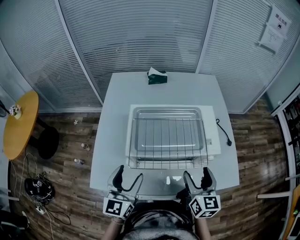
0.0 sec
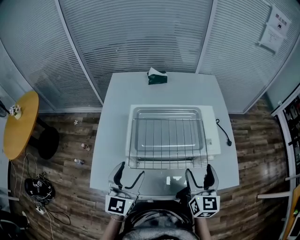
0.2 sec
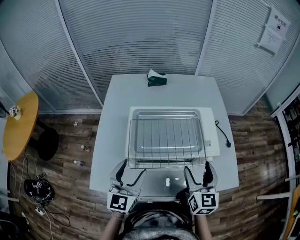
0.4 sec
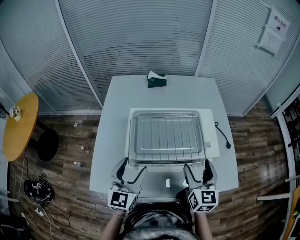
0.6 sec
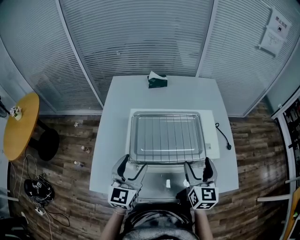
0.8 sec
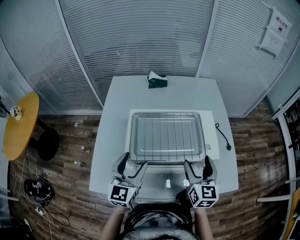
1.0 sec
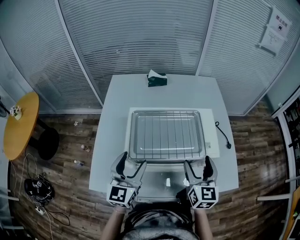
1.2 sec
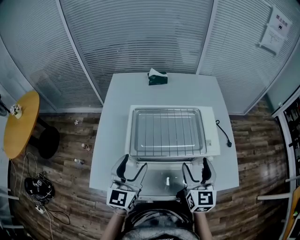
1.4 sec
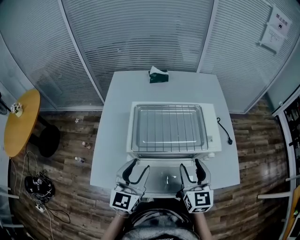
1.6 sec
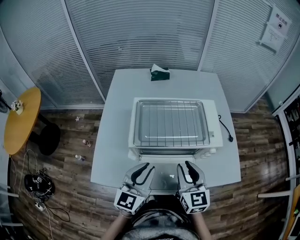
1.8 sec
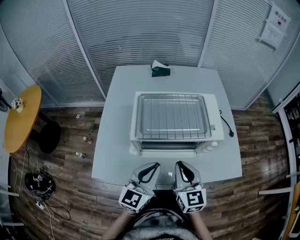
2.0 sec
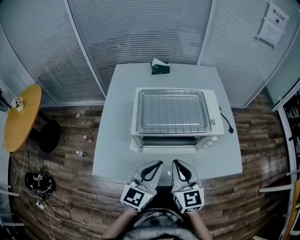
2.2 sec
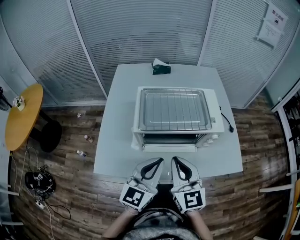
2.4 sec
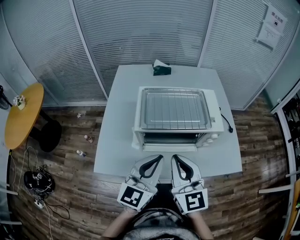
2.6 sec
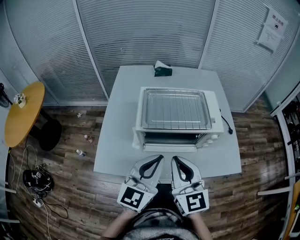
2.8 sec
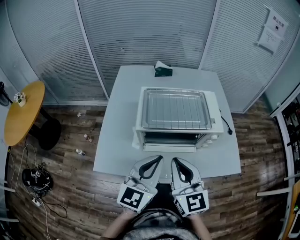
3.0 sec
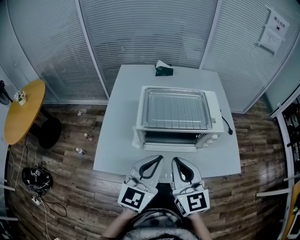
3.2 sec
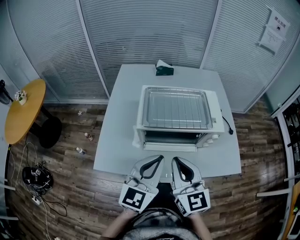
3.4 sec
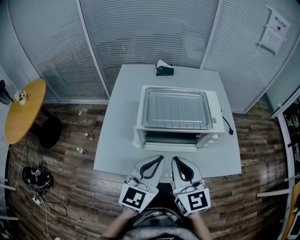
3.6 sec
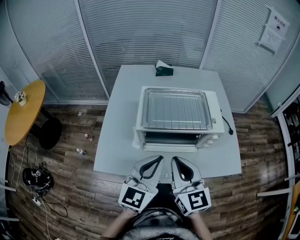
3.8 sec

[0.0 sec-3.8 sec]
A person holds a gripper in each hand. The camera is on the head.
0.0 sec to 1.2 sec: Both grippers travel together forward, about 5 cm.
1.2 sec to 2.6 sec: The right gripper shifts roughly 20 cm backward, to the left and upward, turns by about 20 degrees, and closes, while the left gripper shifts about 15 cm backward and to the right, and closes its fingers.
2.6 sec to 3.8 sec: The grippers make only small movements.

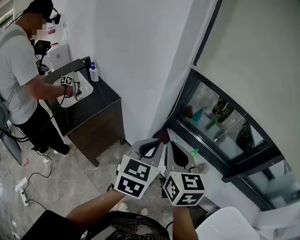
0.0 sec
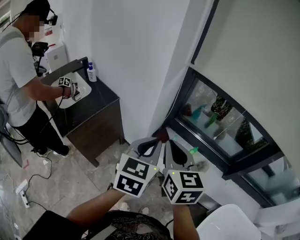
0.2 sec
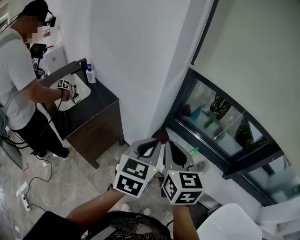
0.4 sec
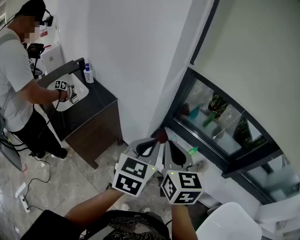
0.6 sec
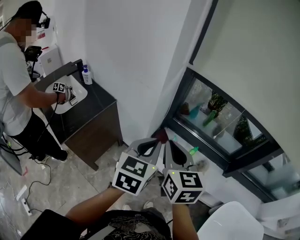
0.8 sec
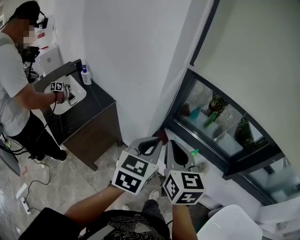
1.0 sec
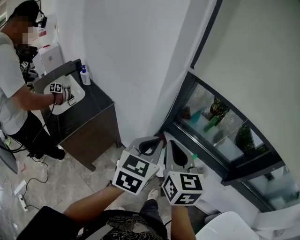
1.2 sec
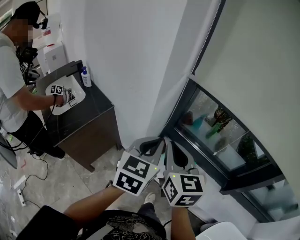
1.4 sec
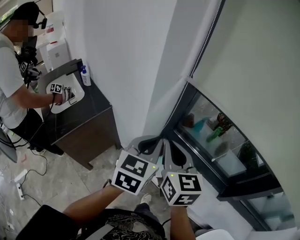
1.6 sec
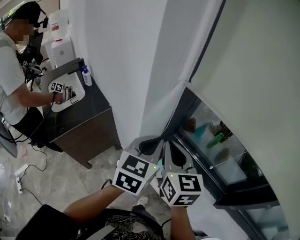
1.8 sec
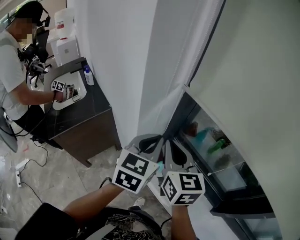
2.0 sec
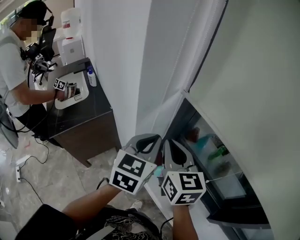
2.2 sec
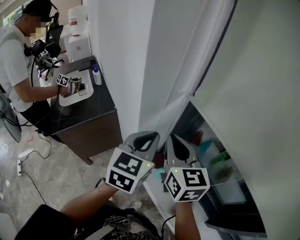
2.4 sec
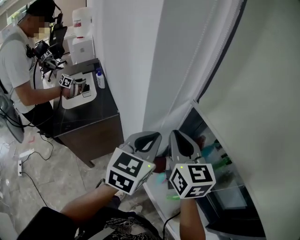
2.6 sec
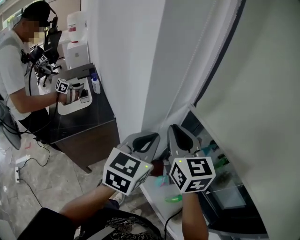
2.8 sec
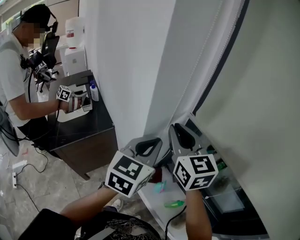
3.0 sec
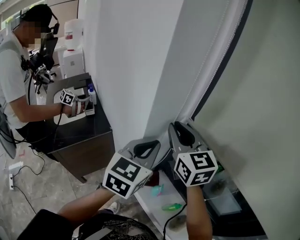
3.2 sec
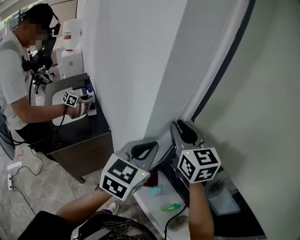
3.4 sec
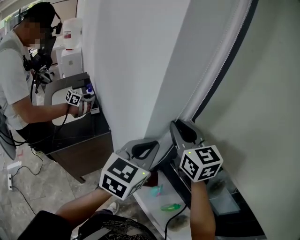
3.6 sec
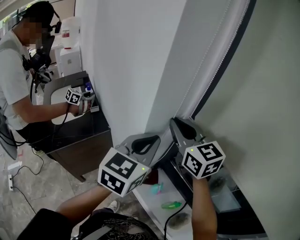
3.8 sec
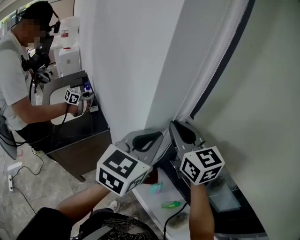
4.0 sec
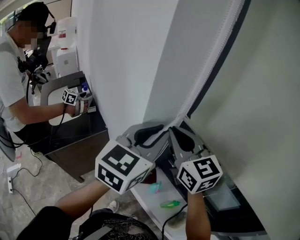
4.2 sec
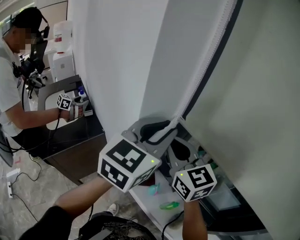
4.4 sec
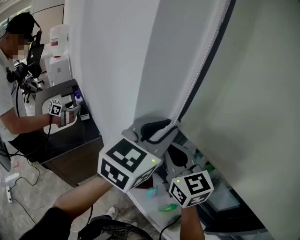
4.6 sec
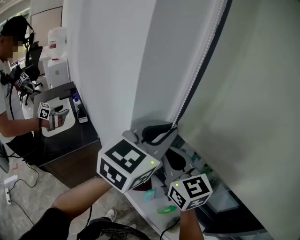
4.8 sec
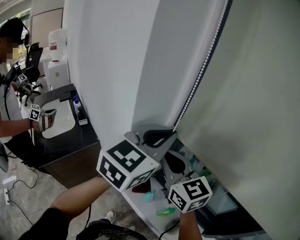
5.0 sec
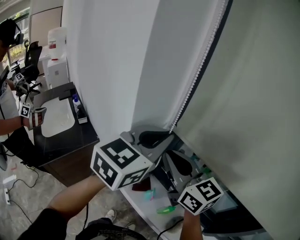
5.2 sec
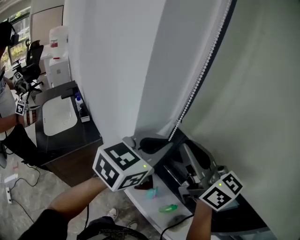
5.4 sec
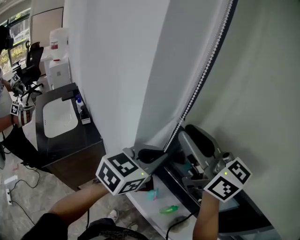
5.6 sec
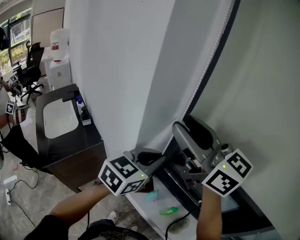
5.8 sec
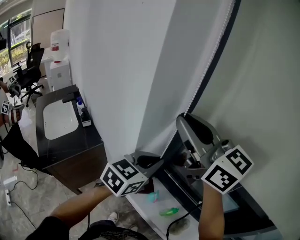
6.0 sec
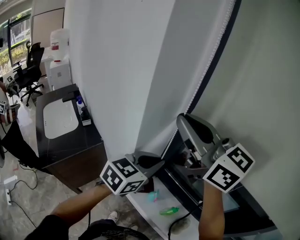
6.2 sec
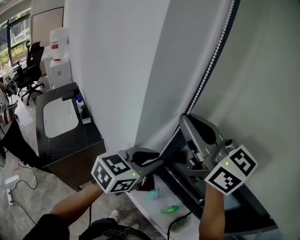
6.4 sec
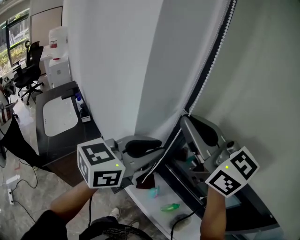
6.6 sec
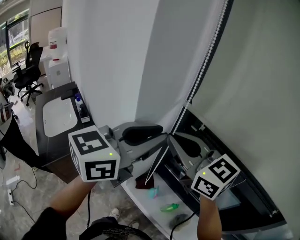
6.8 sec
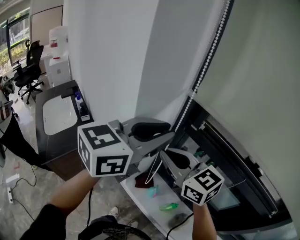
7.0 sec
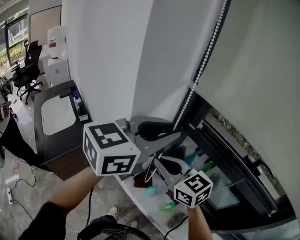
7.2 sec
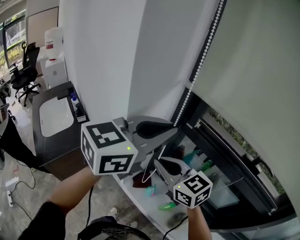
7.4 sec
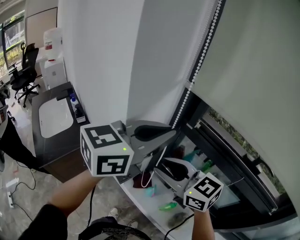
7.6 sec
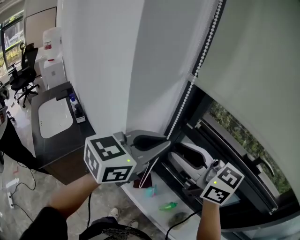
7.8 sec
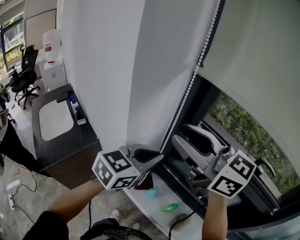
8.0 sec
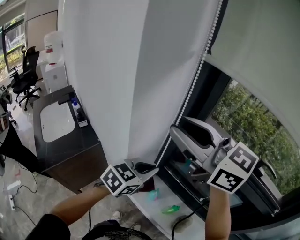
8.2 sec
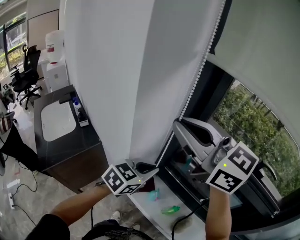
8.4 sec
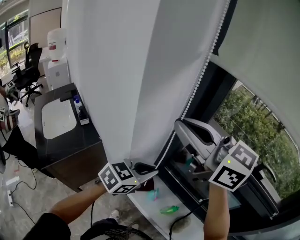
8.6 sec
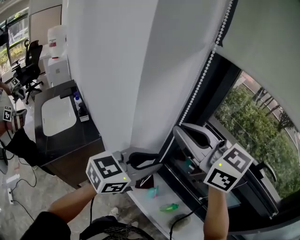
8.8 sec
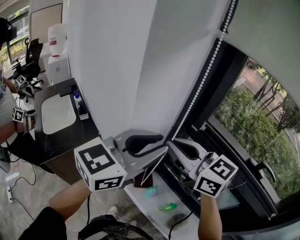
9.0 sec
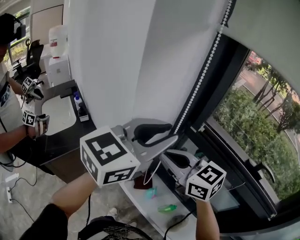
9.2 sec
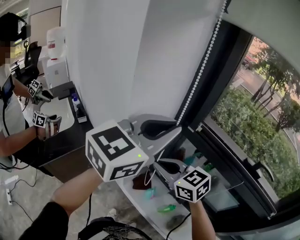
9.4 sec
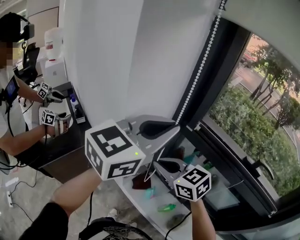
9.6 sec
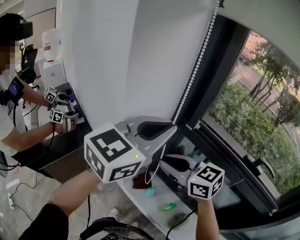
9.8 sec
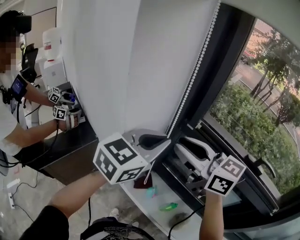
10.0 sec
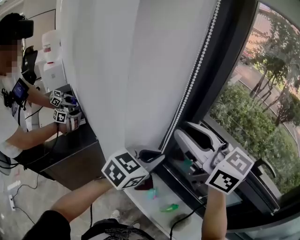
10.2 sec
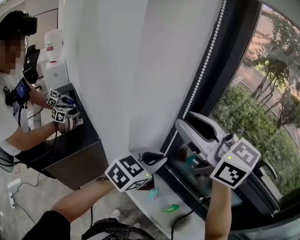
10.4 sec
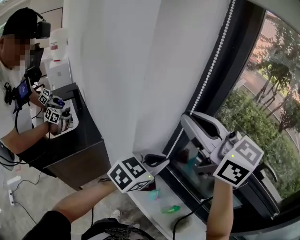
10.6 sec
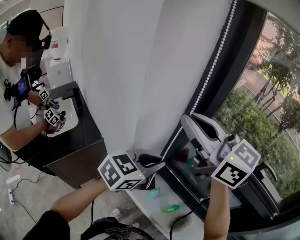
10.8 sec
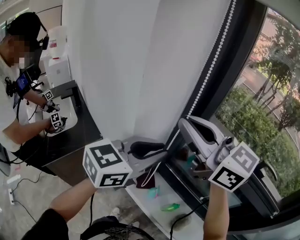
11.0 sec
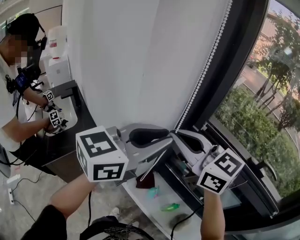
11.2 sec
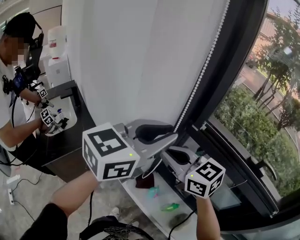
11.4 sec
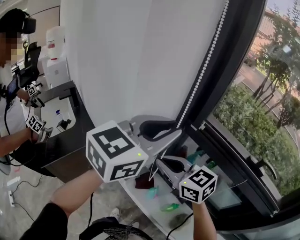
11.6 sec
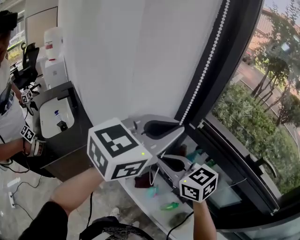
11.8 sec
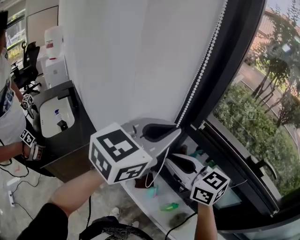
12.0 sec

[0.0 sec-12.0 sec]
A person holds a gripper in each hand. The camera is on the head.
0.0 sec to 1.6 sec: Both grippers move forward, roughly 15 cm.
1.6 sec to 3.0 sec: The left gripper travels forward and upward by about 10 cm, while the right gripper travels forward and upward by roughly 20 cm, and turns by some 20 degrees.
3.0 sec to 4.4 sec: The left gripper shifts about 10 cm upward, and opens.
4.4 sec to 6.0 sec: The right gripper is displaced upward by roughly 15 cm, and opens and closes again. Meanwhile the left gripper shifts roughly 10 cm downward.
6.0 sec to 7.6 sec: The left gripper moves upward, roughly 15 cm. The right gripper shifts about 20 cm downward, and swivels some 20 degrees.
7.6 sec to 9.0 sec: The left gripper goes downward and returns, roughly 20 cm each way, and opens up; the right gripper is displaced upward by some 5 cm, and closes.
9.0 sec to 10.4 sec: The left gripper heads downward, covering about 15 cm, changes its angle by some 20 degrees, and closes up; the right gripper moves upward, some 10 cm, and opens up.
10.4 sec to 12.0 sec: The right gripper travels downward by roughly 15 cm; the left gripper goes approximately 15 cm upward.

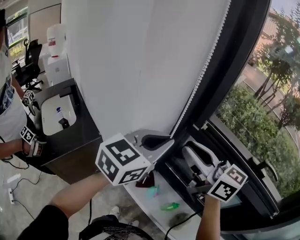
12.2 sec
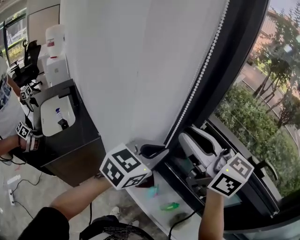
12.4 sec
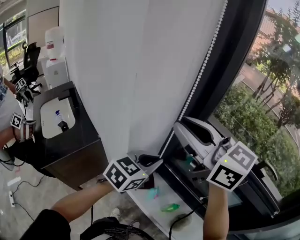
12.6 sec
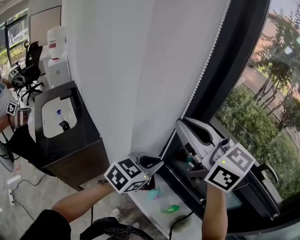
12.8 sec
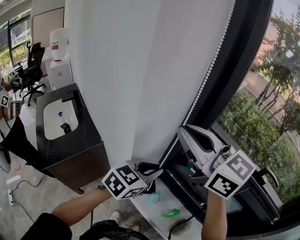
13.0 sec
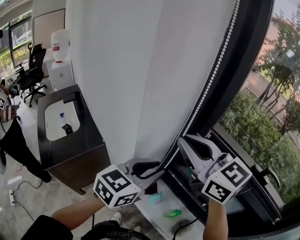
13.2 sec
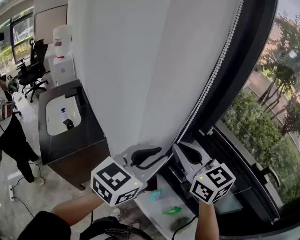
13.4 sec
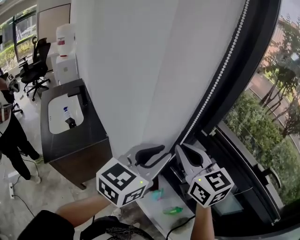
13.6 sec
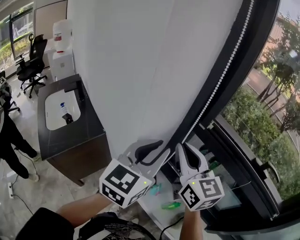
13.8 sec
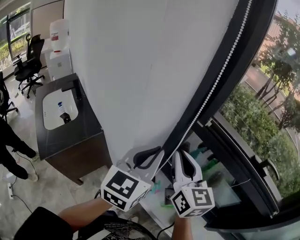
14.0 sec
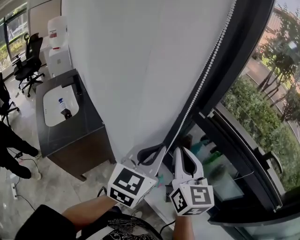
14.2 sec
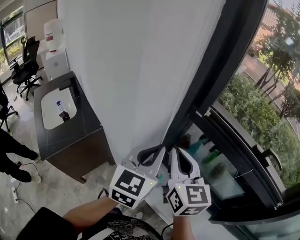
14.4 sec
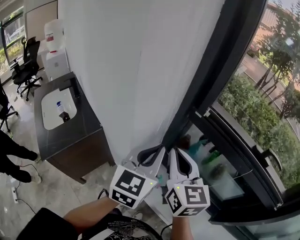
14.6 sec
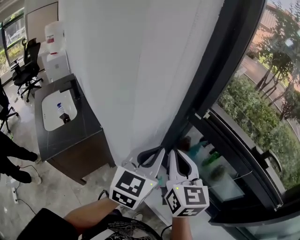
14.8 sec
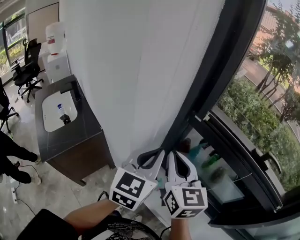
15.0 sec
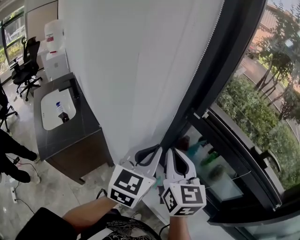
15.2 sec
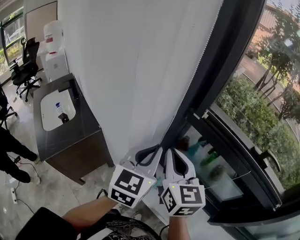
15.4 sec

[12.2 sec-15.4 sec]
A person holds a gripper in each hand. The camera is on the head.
12.2 sec to 13.8 sec: The left gripper goes downward and returns, roughly 10 cm each way. Meanwhile the right gripper goes upward and returns, approximately 10 cm each way, and rotates some 20 degrees.
13.8 sec to 15.4 sec: The left gripper shifts approximately 5 cm downward, while the right gripper moves approximately 5 cm.

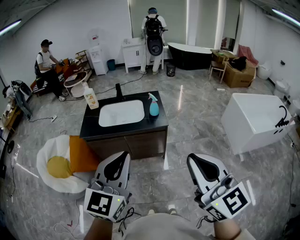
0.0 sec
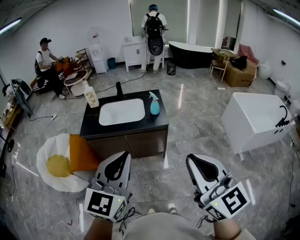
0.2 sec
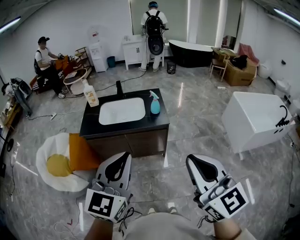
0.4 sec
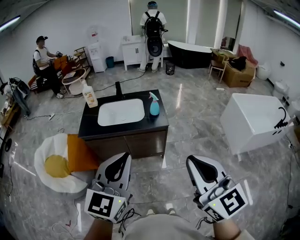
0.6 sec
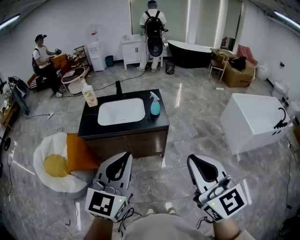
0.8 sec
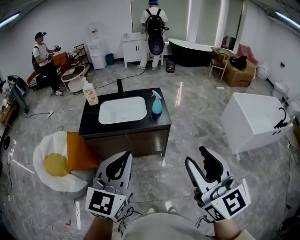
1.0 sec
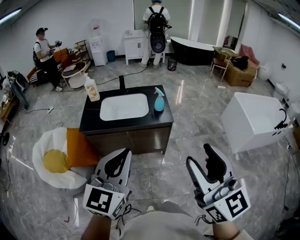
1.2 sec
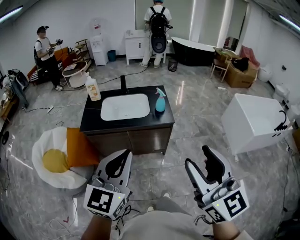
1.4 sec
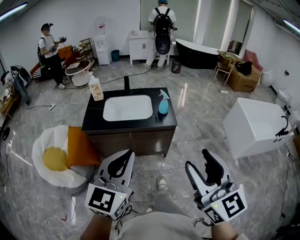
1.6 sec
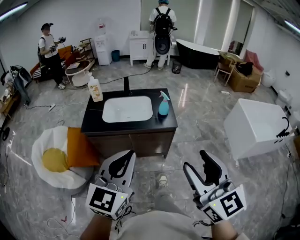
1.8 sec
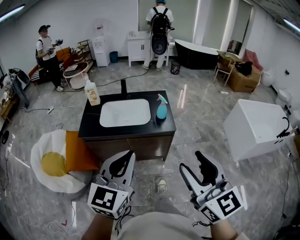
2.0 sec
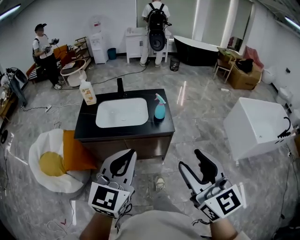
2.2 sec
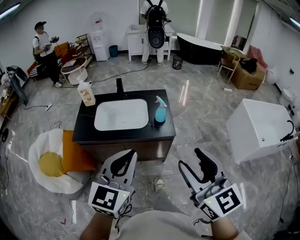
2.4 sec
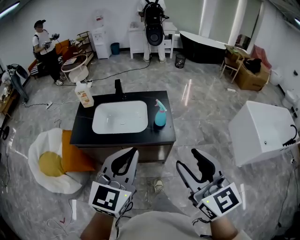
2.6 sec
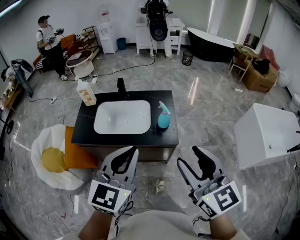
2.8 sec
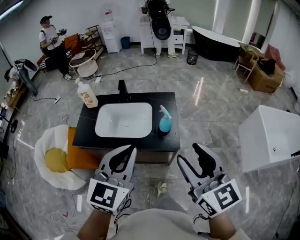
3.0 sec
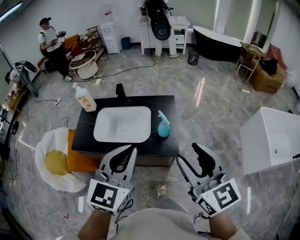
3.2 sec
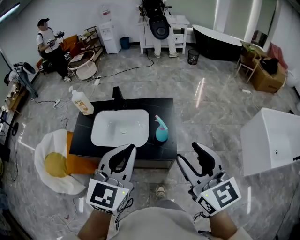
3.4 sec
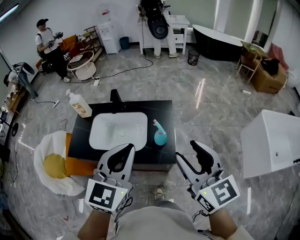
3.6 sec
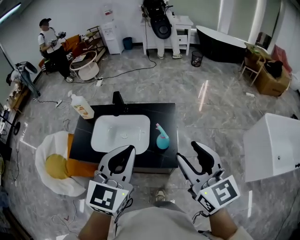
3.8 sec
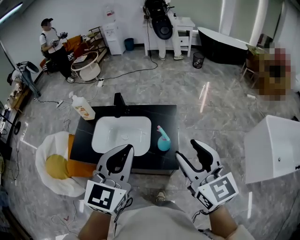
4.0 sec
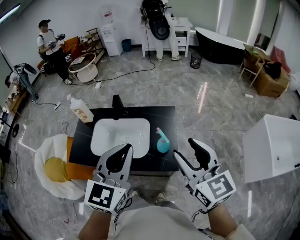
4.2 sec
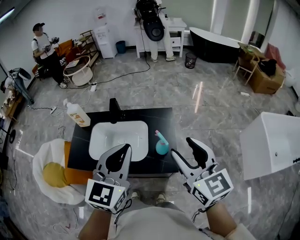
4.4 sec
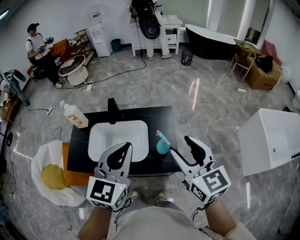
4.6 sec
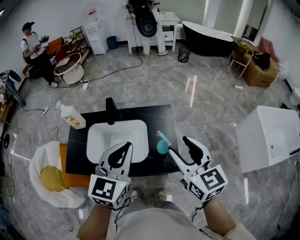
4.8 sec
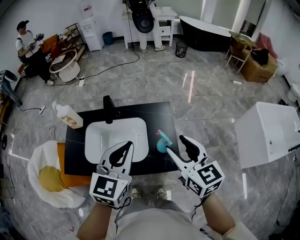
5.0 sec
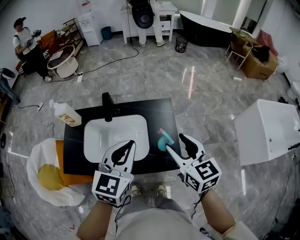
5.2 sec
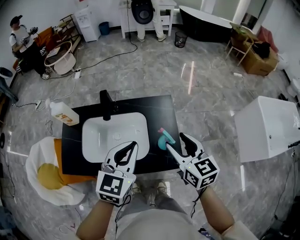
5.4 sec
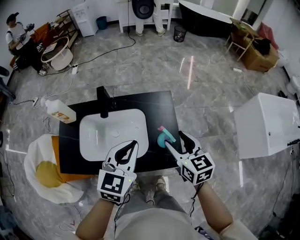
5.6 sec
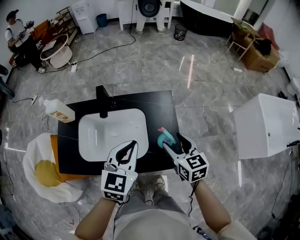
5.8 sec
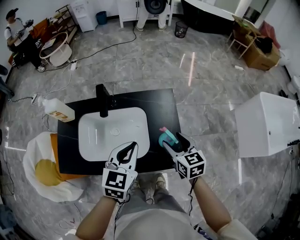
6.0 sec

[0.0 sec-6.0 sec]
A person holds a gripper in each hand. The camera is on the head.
0.0 sec to 1.6 sec: Both grippers move to the left and forward, some 10 cm. The right gripper opens.
1.6 sec to 3.0 sec: Both grippers travel together forward, some 30 cm.
3.0 sec to 4.4 sec: Both grippers travel together forward, roughly 15 cm.
4.4 sec to 6.0 sec: Both grippers travel together downward and forward, approximately 25 cm. The right gripper swivels about 30 degrees; the left gripper turns by roughly 20 degrees.
